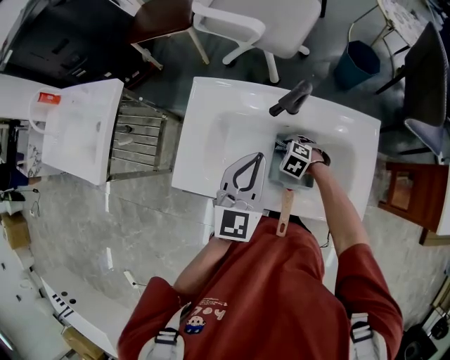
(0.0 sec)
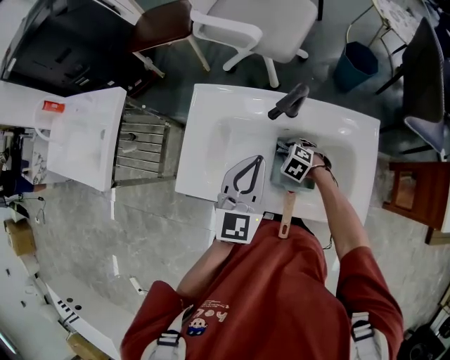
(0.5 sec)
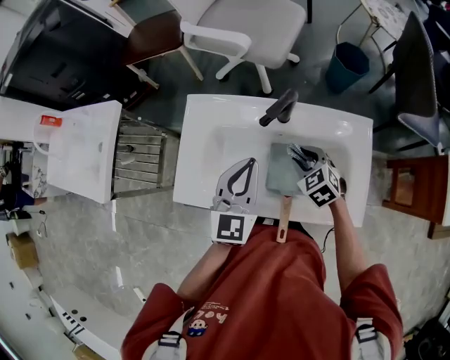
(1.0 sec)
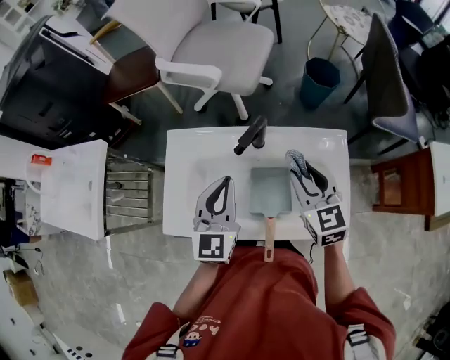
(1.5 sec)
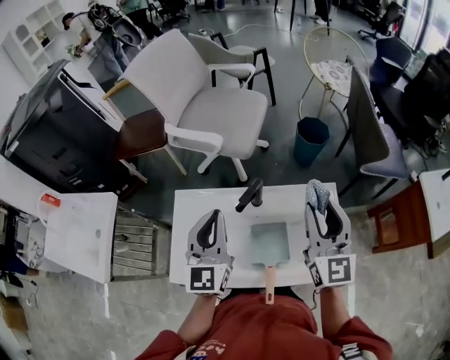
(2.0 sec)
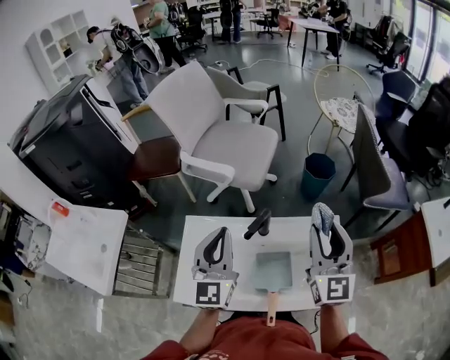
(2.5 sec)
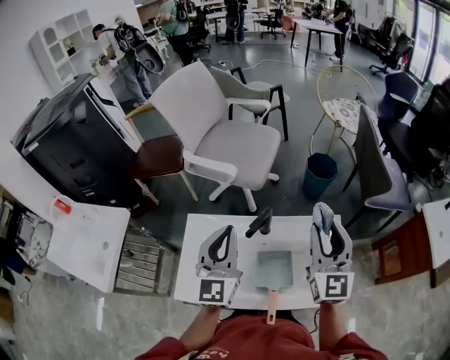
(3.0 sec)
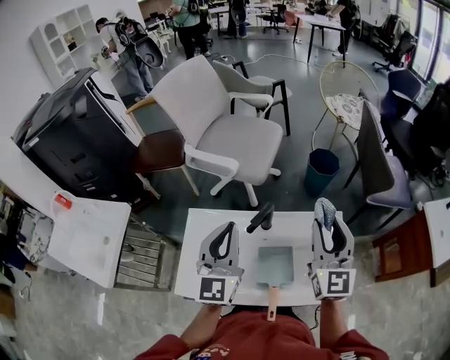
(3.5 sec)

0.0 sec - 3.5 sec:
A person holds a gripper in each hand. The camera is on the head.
0.0 sec - 2.0 sec: The left gripper heads upward and forward, covering approximately 15 cm, while the right gripper is displaced upward by approximately 40 cm, and points its fingers roughly 80 degrees further upward.
2.0 sec - 3.5 sec: The grippers make only small movements.

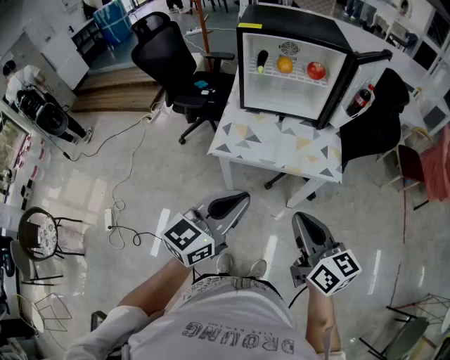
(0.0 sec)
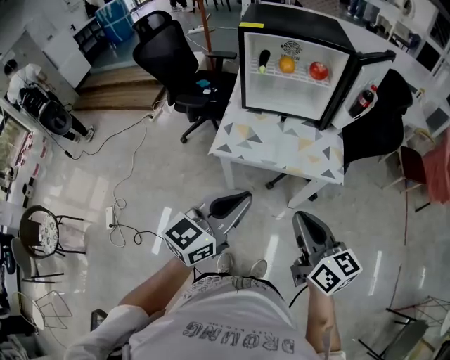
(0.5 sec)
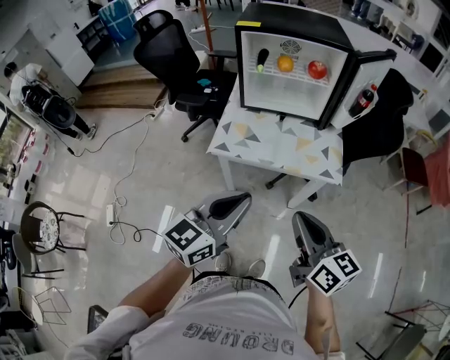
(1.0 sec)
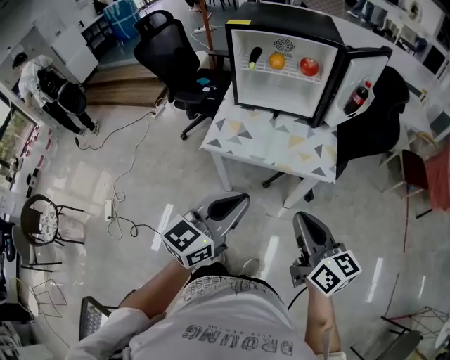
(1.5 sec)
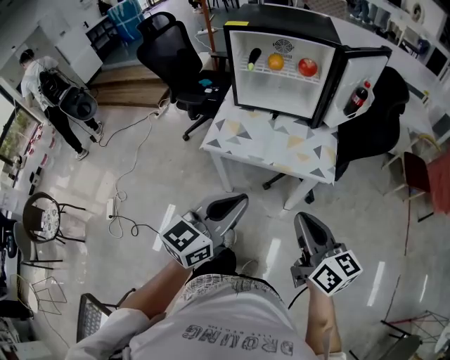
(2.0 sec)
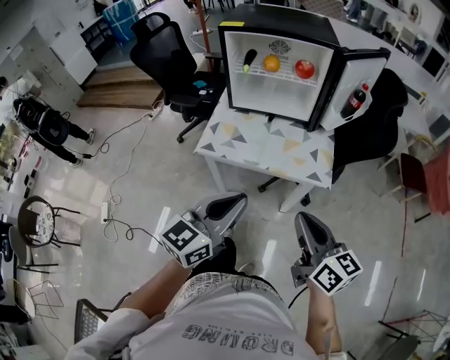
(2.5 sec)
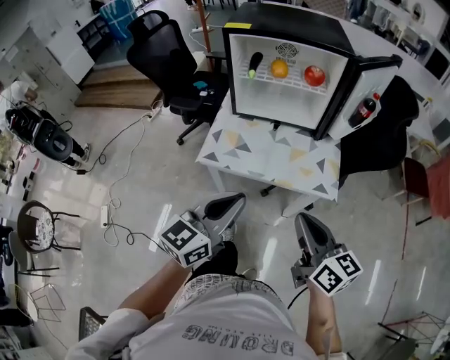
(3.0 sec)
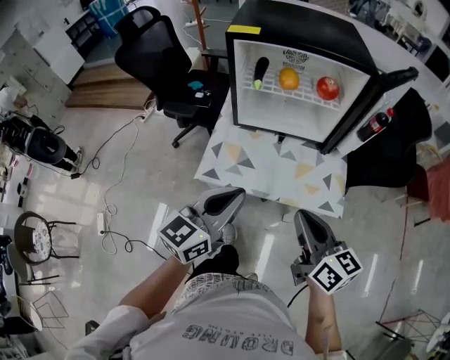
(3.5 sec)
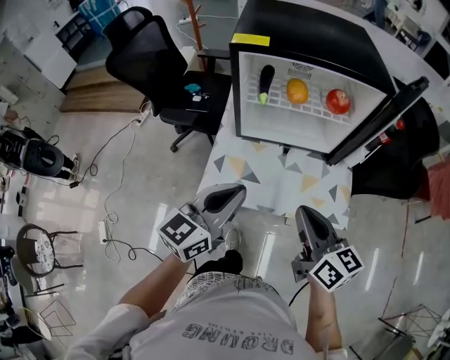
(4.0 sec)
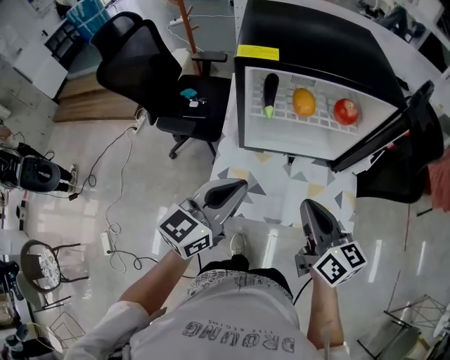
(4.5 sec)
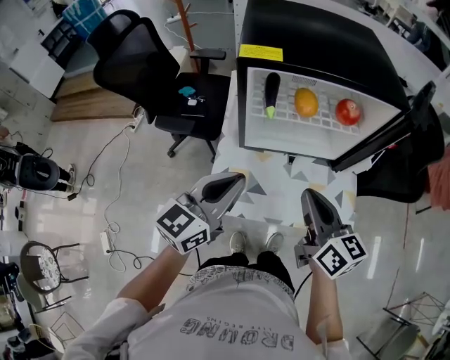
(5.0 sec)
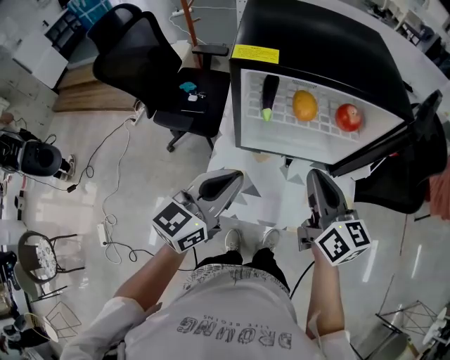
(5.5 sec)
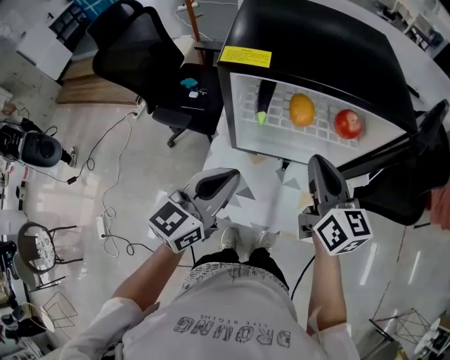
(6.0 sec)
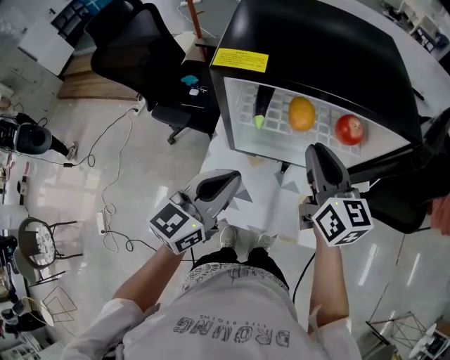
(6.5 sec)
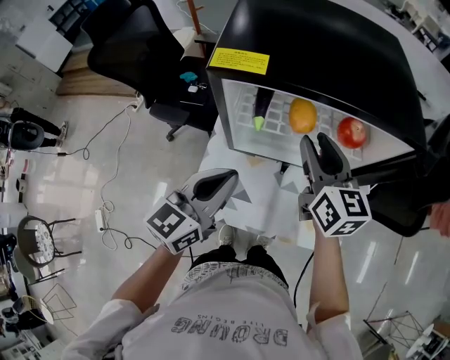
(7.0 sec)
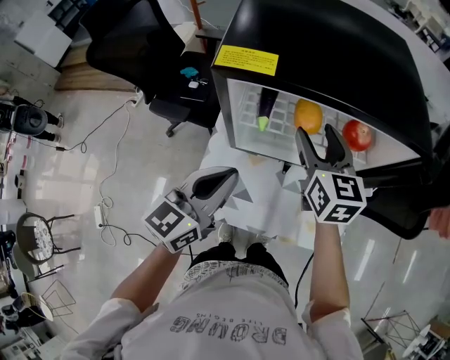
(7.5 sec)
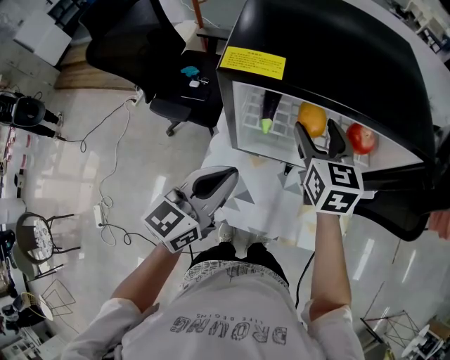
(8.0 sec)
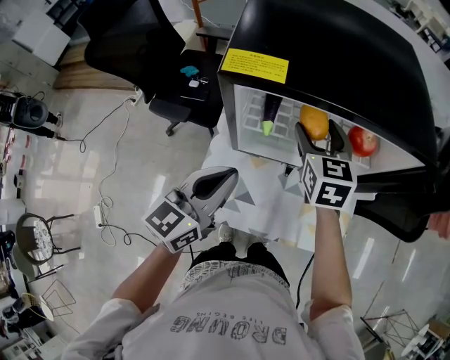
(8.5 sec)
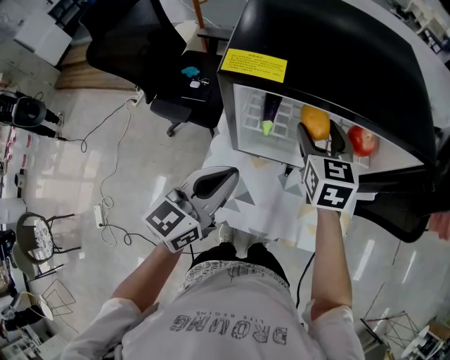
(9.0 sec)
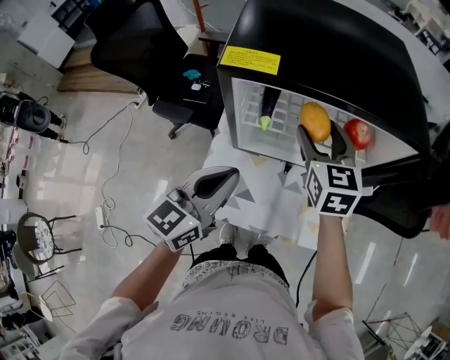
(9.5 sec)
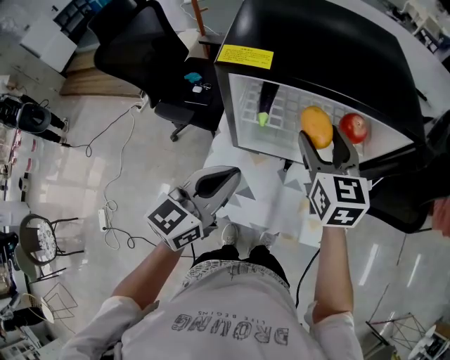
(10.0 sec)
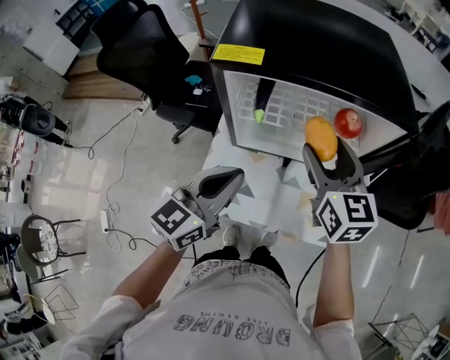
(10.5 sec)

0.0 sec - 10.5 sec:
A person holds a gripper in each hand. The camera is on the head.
0.0 sec - 2.0 sec: The two grippers go roughly 10 cm to the right.
2.0 sec - 4.0 sec: The two grippers go approximately 30 cm forward and to the left.
4.0 sec - 6.5 sec: The left gripper travels forward by approximately 15 cm; the right gripper heads forward, covering about 25 cm.
6.5 sec - 8.5 sec: The right gripper travels forward and downward by approximately 10 cm, changes its angle by about 30 degrees, and opens.
8.5 sec - 10.5 sec: The right gripper travels backward, upward and to the right by roughly 15 cm, while the left gripper shifts by roughly 5 cm.

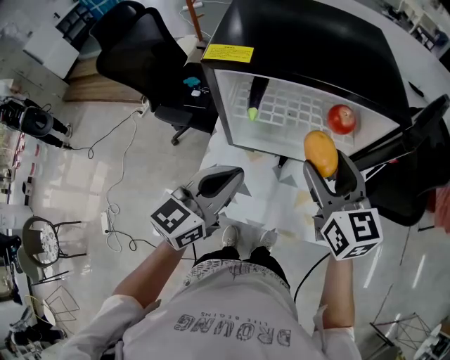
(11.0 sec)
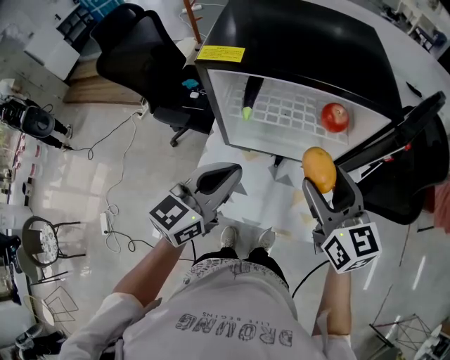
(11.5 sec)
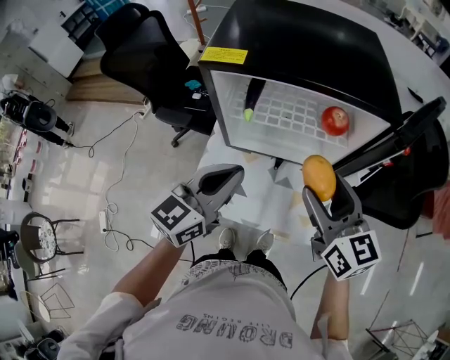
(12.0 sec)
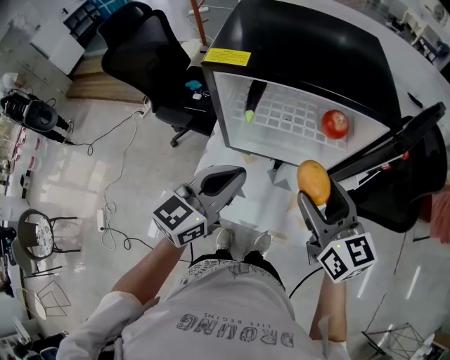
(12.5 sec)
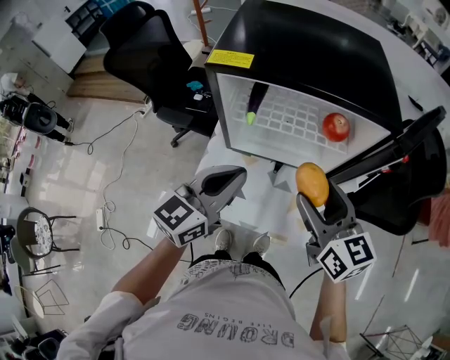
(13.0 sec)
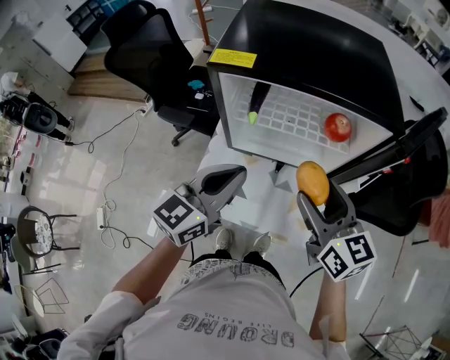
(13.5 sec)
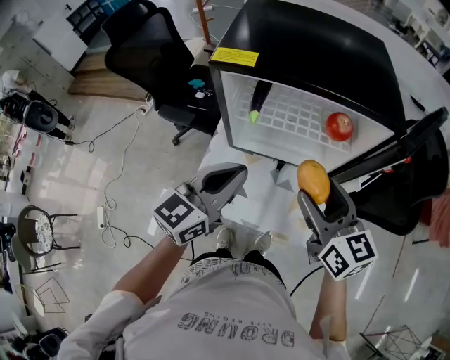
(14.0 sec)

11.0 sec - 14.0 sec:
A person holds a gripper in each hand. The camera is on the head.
11.0 sec - 12.5 sec: The right gripper shifts some 5 cm backward.
12.5 sec - 14.0 sec: Both grippers stay put.

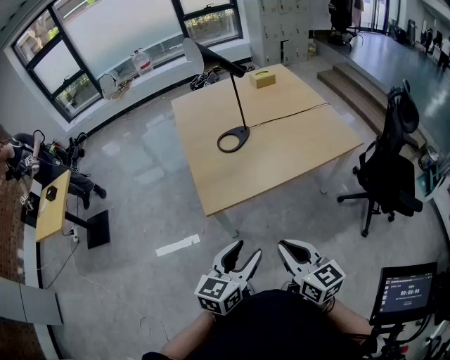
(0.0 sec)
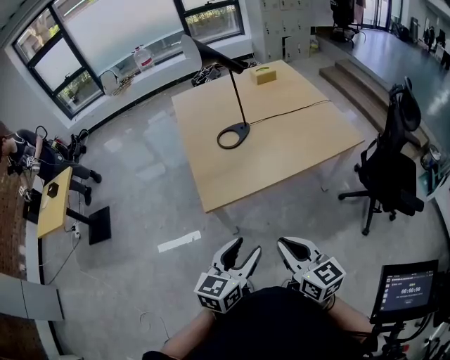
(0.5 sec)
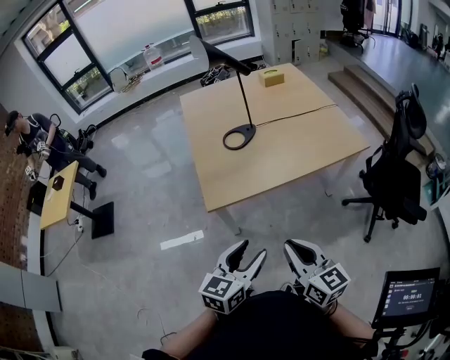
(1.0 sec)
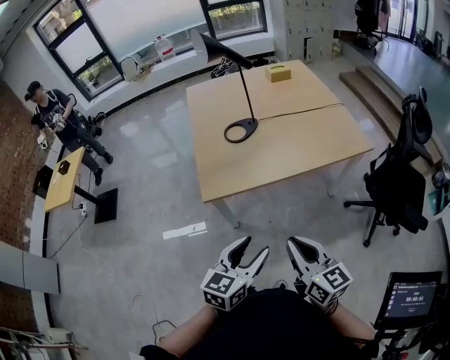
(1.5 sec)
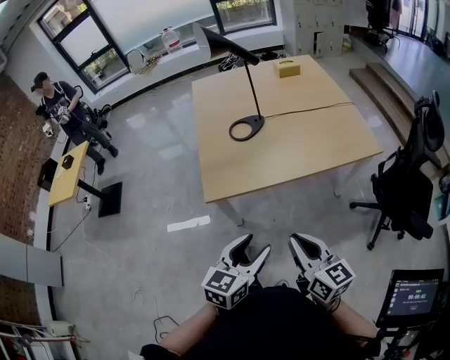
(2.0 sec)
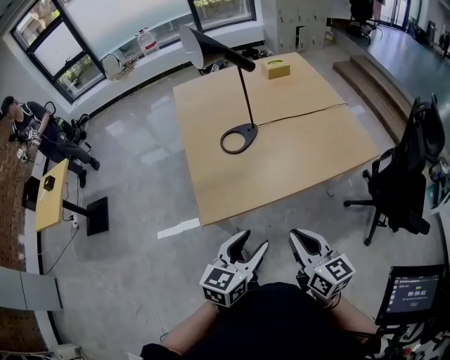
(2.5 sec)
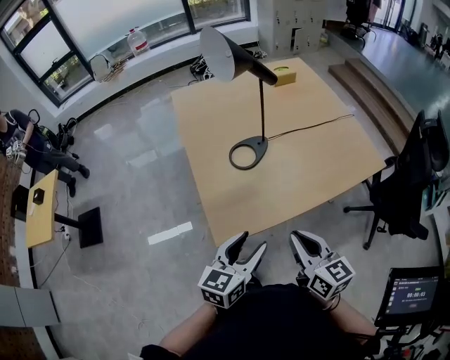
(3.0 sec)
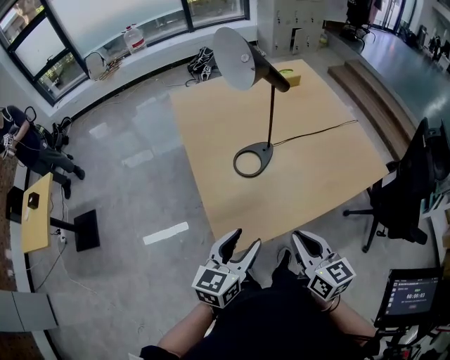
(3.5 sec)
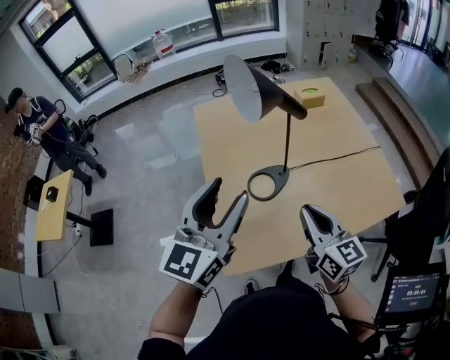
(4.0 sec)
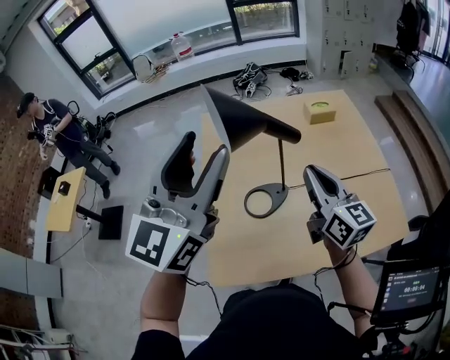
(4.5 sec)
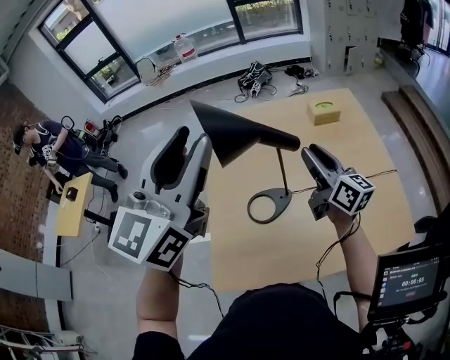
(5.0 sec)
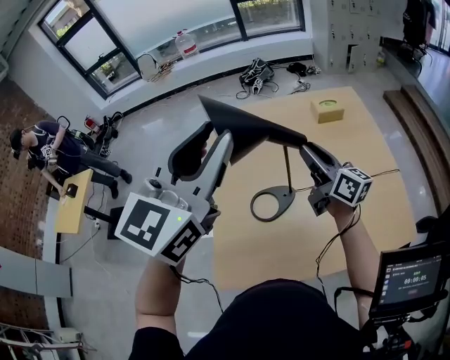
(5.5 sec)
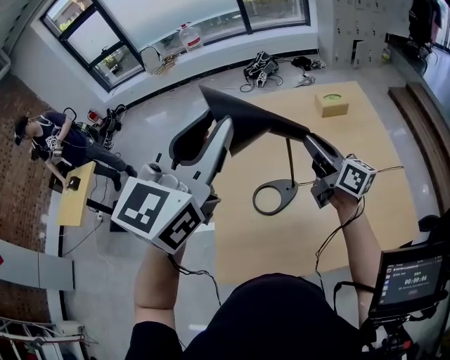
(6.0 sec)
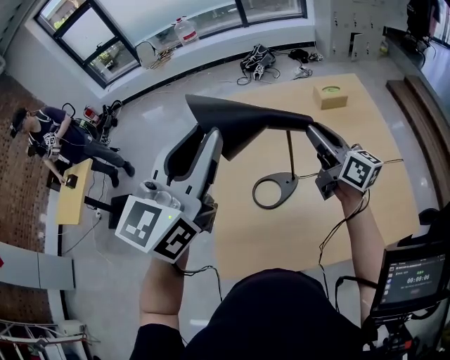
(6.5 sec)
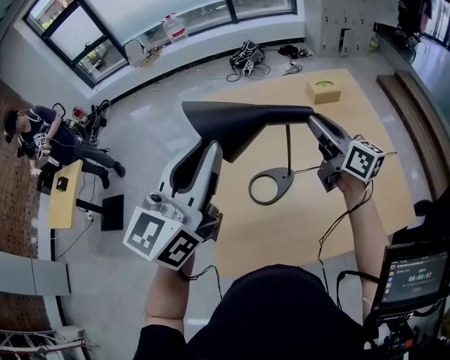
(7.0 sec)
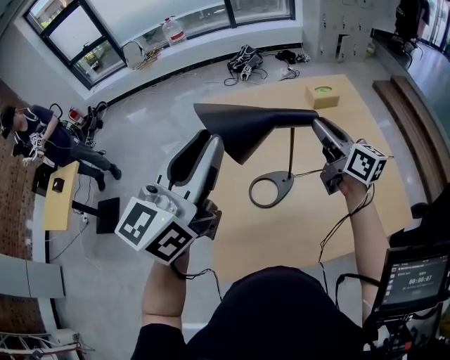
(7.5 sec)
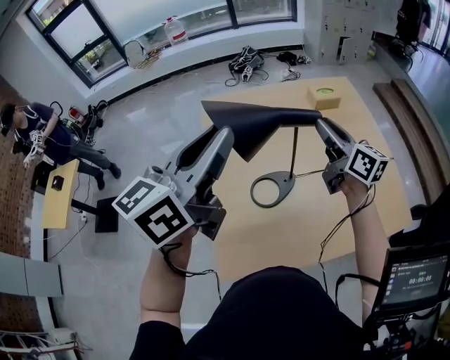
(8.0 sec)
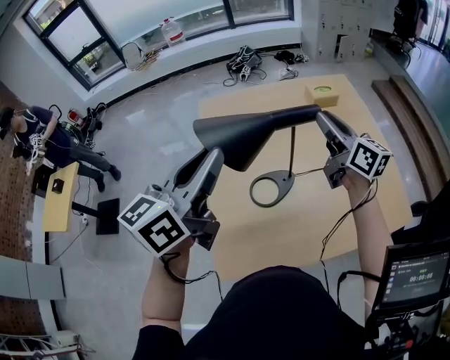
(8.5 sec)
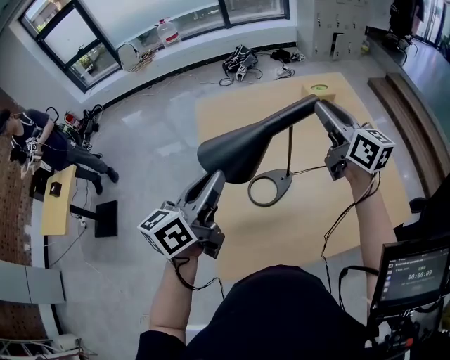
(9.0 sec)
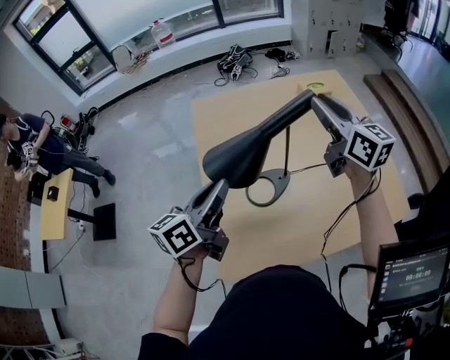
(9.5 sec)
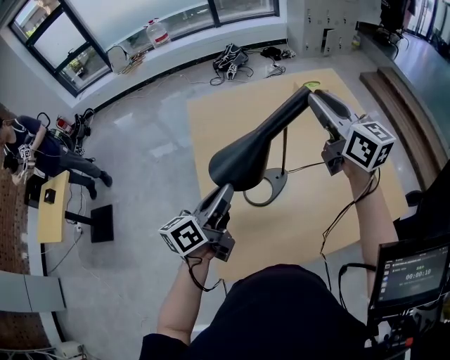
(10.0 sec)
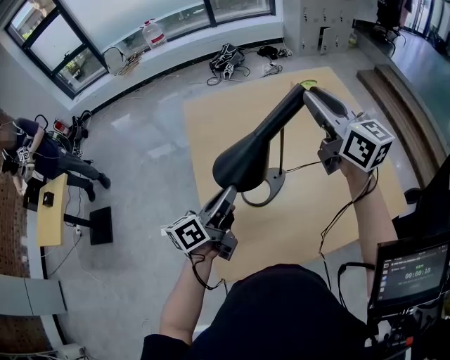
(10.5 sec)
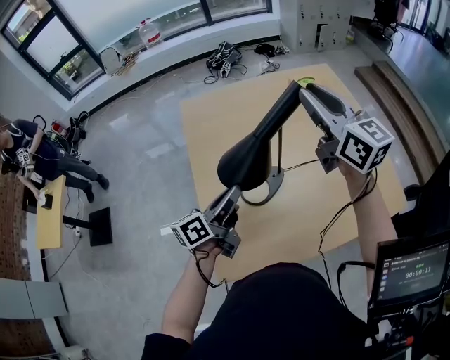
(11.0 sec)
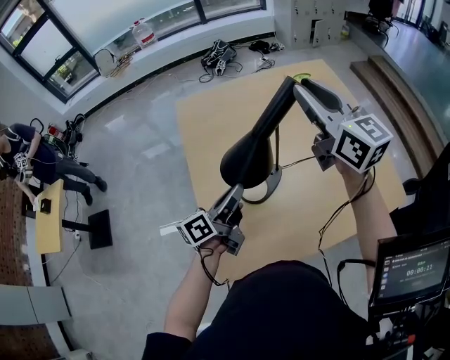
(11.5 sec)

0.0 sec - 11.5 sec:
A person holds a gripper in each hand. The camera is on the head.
0.0 sec - 2.0 sec: The grippers both shift to the right by some 10 cm.
2.0 sec - 4.0 sec: The left gripper goes approximately 50 cm forward, upward and to the left, and changes its angle by some 30 degrees, while the right gripper goes approximately 35 cm forward.
4.0 sec - 6.0 sec: The left gripper heads upward, forward and to the right, covering roughly 20 cm, and closes its fingers. Meanwhile the right gripper goes some 25 cm forward, rotates some 30 degrees, and opens.
6.0 sec - 7.5 sec: The left gripper goes approximately 5 cm to the left.
7.5 sec - 9.5 sec: The right gripper shifts roughly 5 cm upward. Meanwhile the left gripper goes some 20 cm downward, and swivels about 30 degrees.
9.5 sec - 11.5 sec: The left gripper heads downward and to the right, covering approximately 10 cm.
